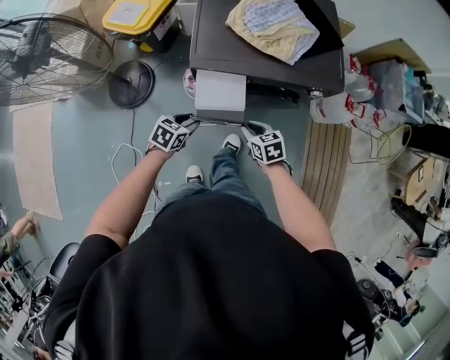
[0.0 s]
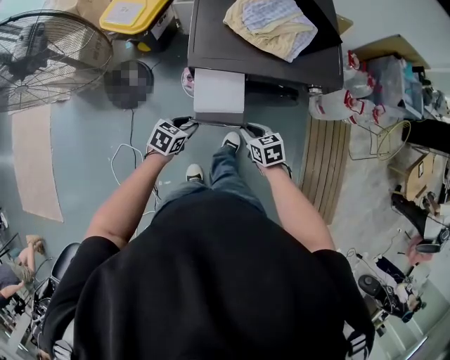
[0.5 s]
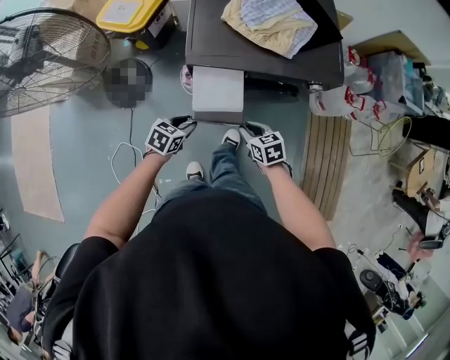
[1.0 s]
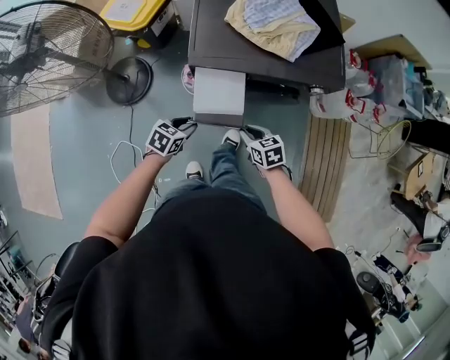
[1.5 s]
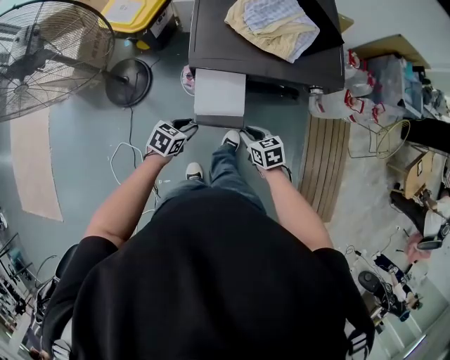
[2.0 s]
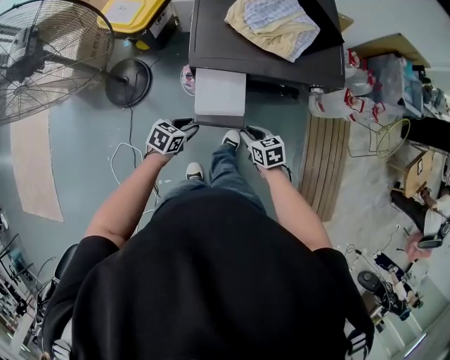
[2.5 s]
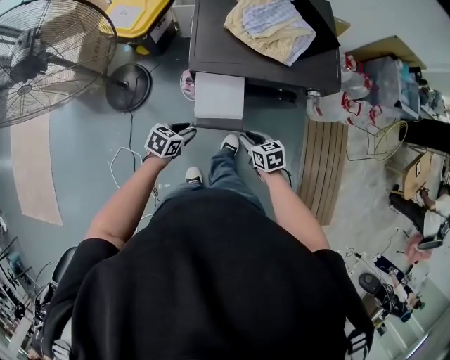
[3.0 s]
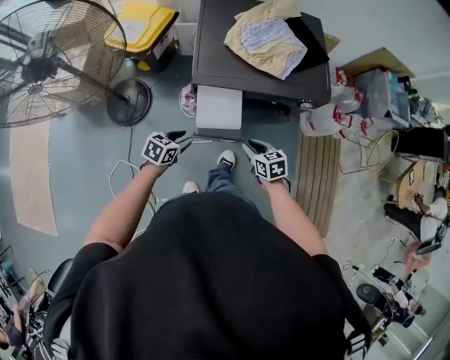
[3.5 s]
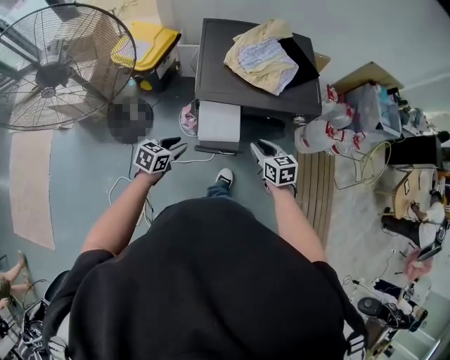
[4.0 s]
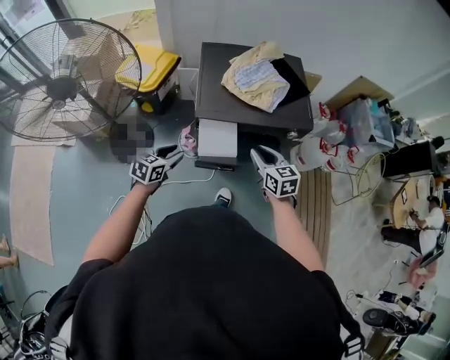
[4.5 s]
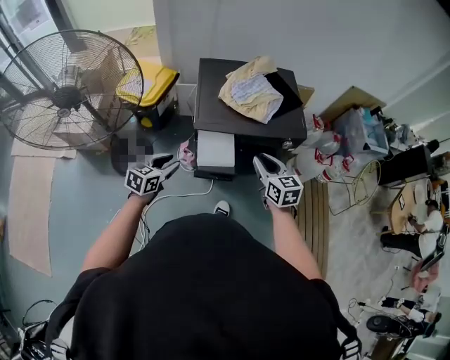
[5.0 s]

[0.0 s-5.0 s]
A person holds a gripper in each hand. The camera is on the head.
0.0 to 2.5 s: The grippers stay close to where they were, moving slightly.
2.5 to 5.0 s: Both grippers move upward, approximately 25 cm. The right gripper turns by roughly 30 degrees. Meanwhile the left gripper rotates roughly 20 degrees.

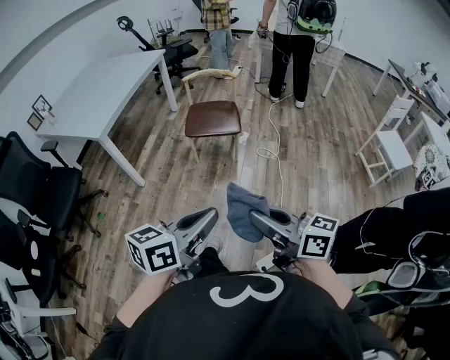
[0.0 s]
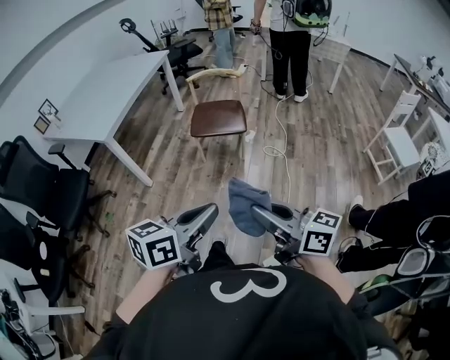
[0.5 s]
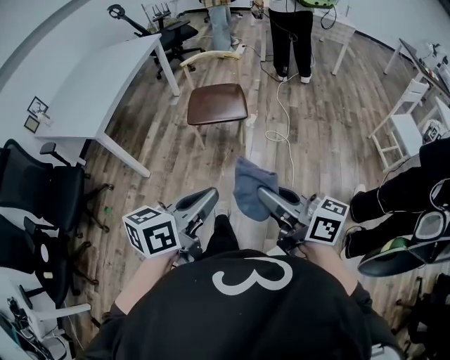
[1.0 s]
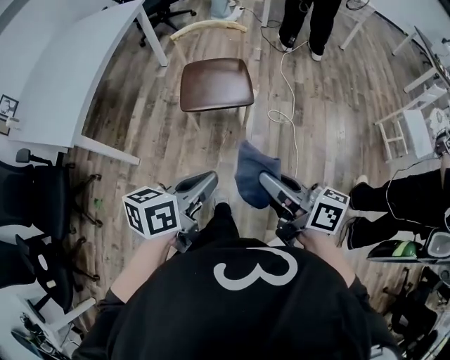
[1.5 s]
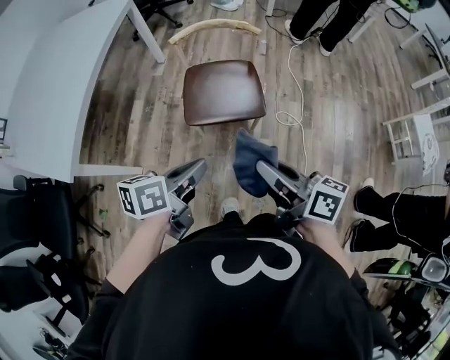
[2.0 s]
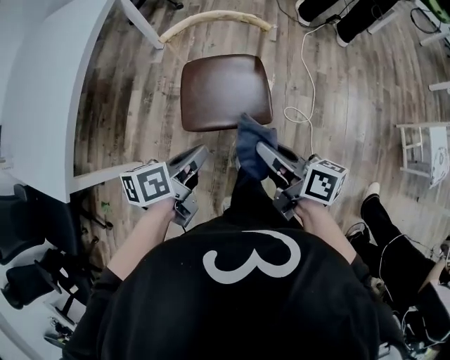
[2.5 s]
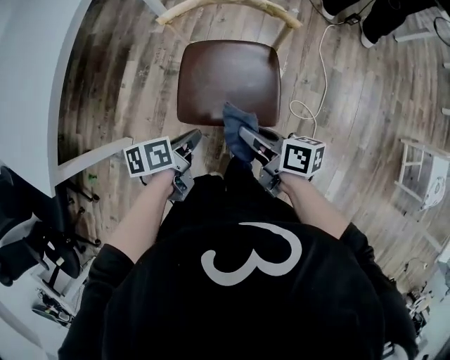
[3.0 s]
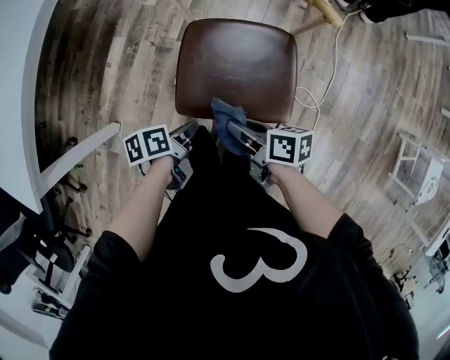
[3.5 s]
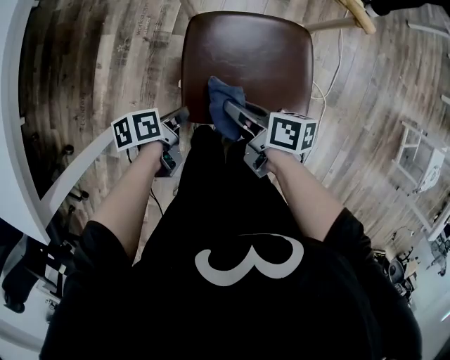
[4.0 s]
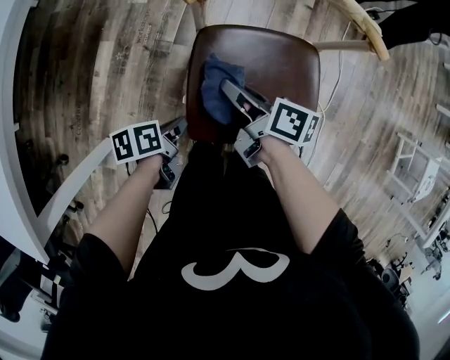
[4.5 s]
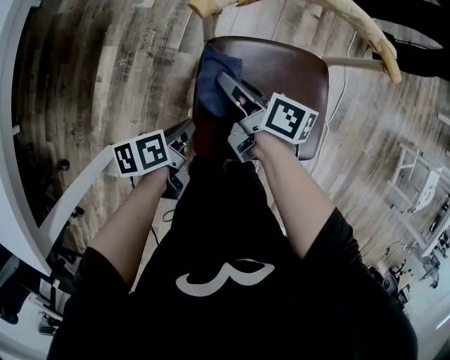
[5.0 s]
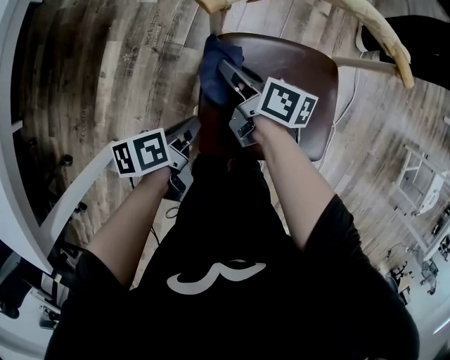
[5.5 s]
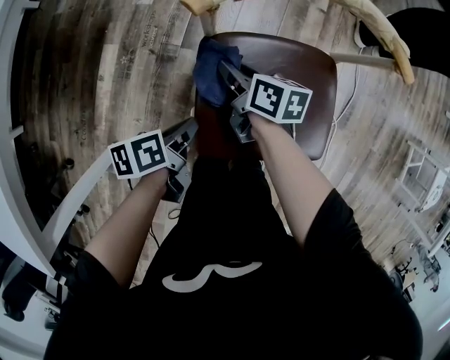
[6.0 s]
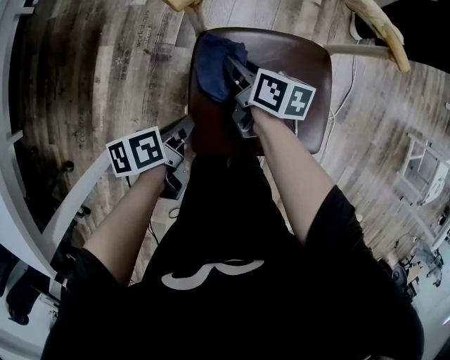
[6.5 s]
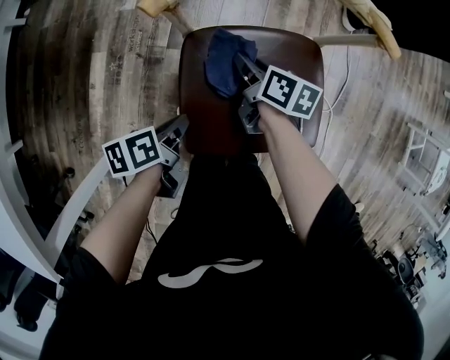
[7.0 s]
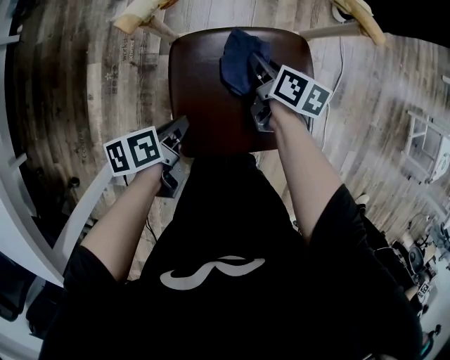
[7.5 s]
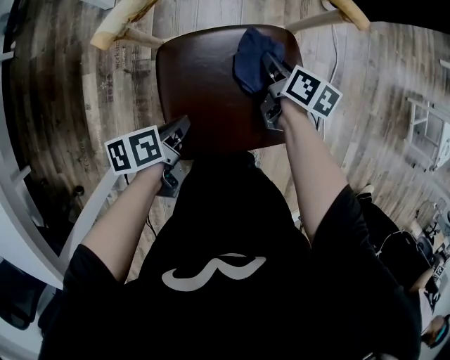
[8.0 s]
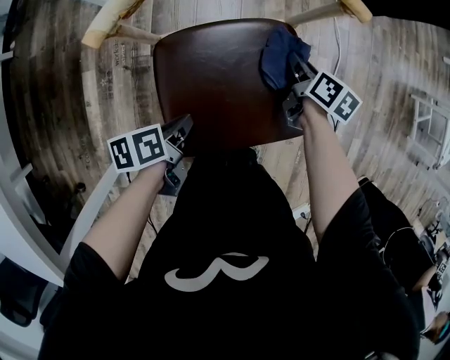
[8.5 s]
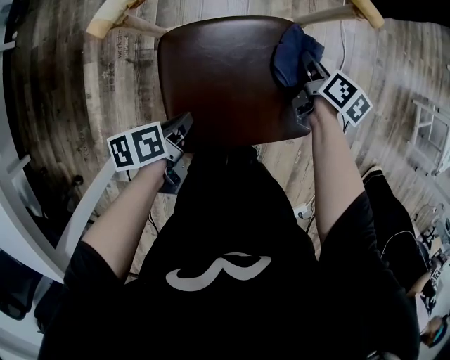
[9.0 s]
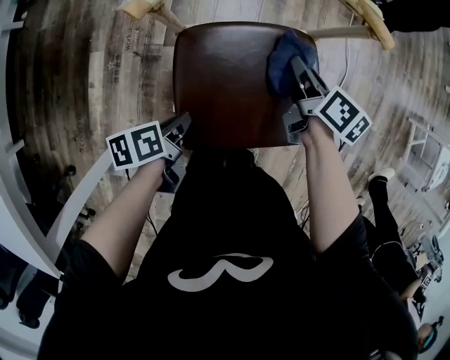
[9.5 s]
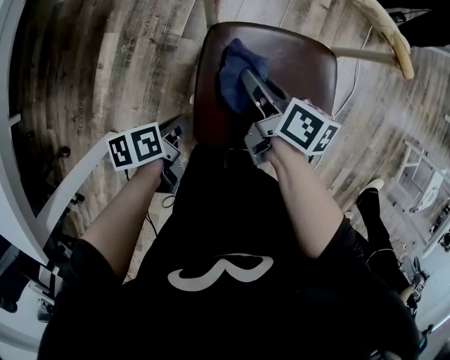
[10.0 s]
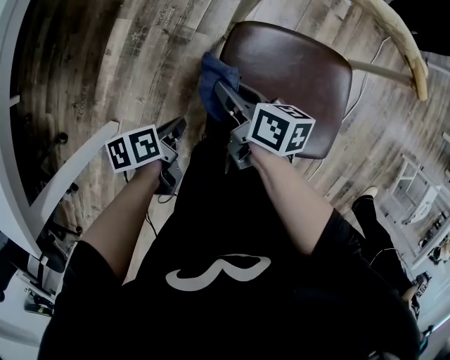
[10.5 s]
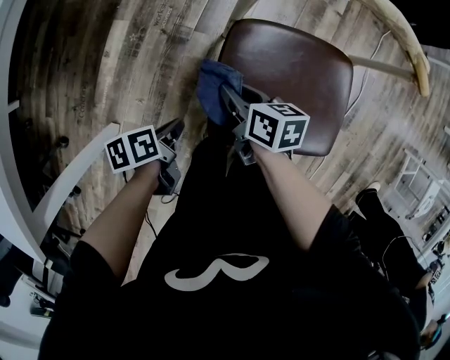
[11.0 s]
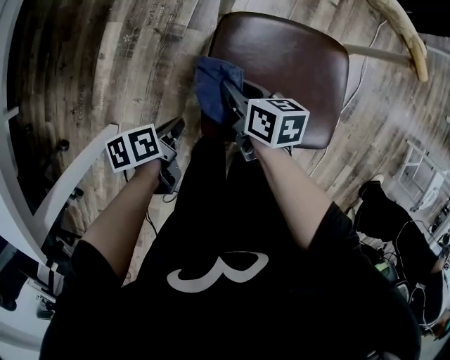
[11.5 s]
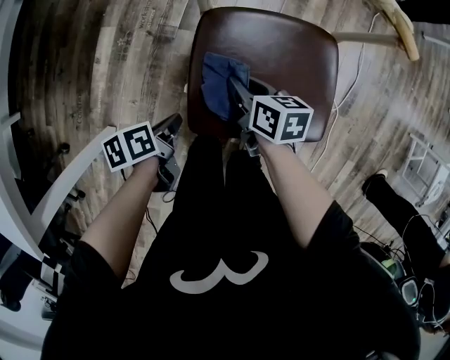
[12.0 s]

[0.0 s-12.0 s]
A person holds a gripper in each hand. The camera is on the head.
0.0 to 2.0 s: The right gripper shifts by approximately 50 cm, and swivels some 20 degrees.
2.0 to 4.0 s: The right gripper shifts about 35 cm downward, and swivels about 30 degrees.
4.0 to 6.0 s: The right gripper shifts by some 20 cm.
6.0 to 8.0 s: The right gripper moves some 20 cm, and turns by some 30 degrees.
8.0 to 10.0 s: The right gripper changes place by about 20 cm, and turns by roughly 20 degrees.
10.0 to 12.0 s: The right gripper heads downward, covering roughly 10 cm, and turns by some 20 degrees.

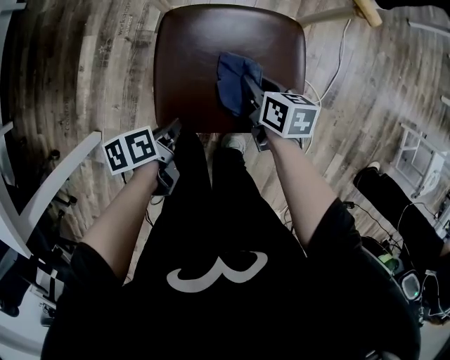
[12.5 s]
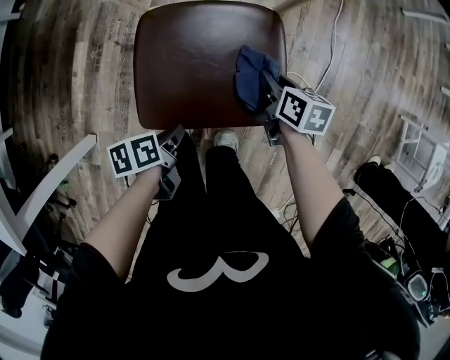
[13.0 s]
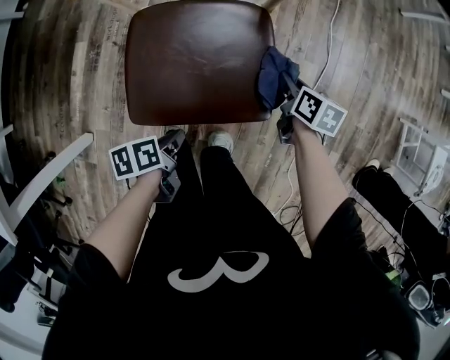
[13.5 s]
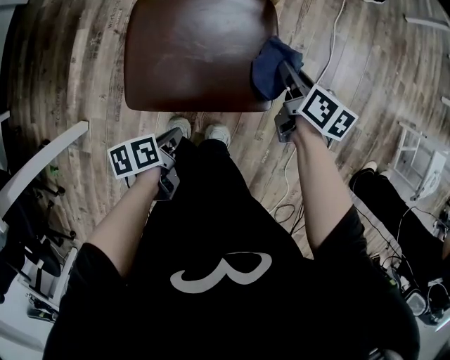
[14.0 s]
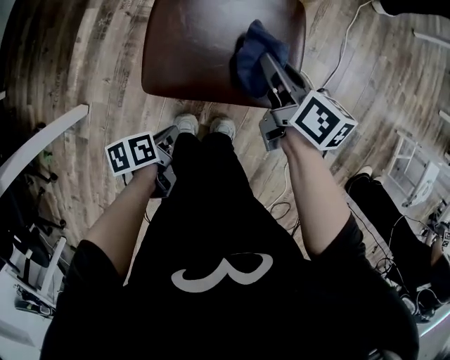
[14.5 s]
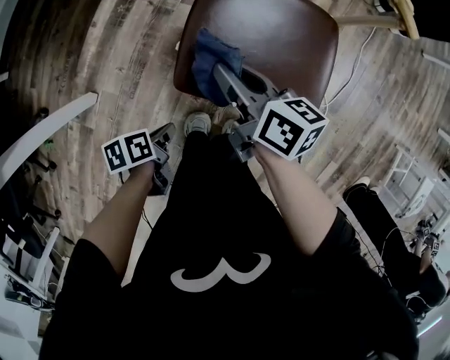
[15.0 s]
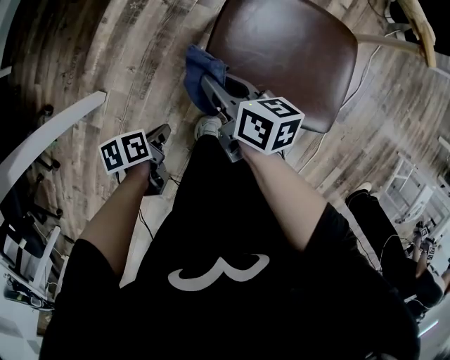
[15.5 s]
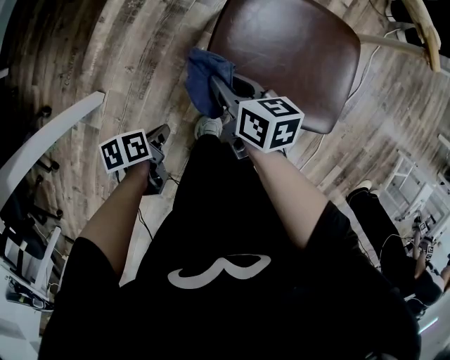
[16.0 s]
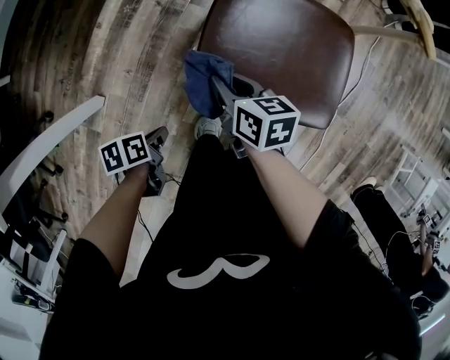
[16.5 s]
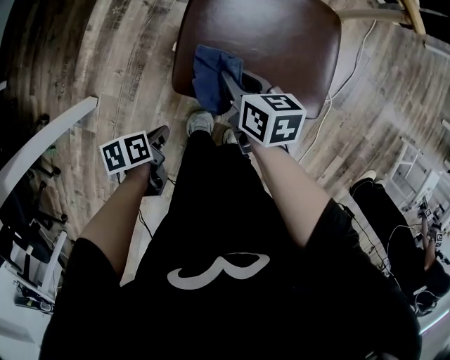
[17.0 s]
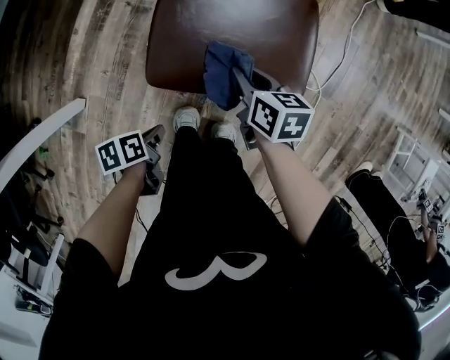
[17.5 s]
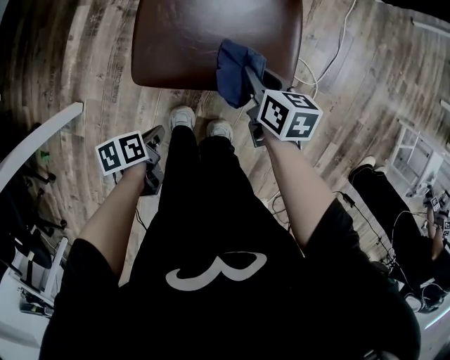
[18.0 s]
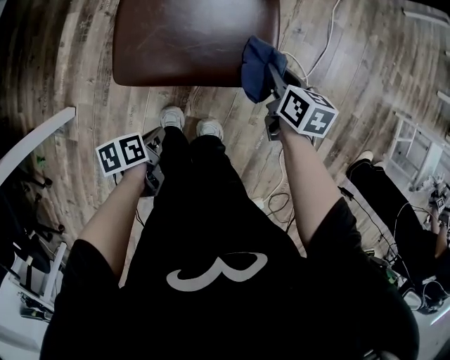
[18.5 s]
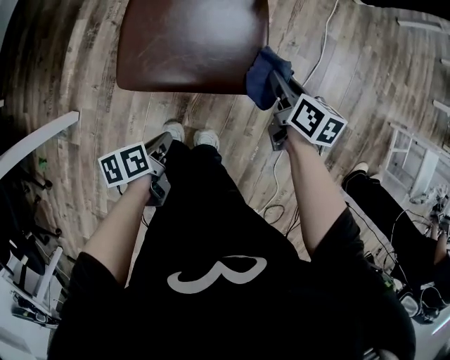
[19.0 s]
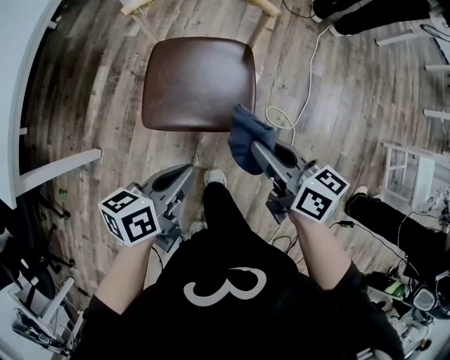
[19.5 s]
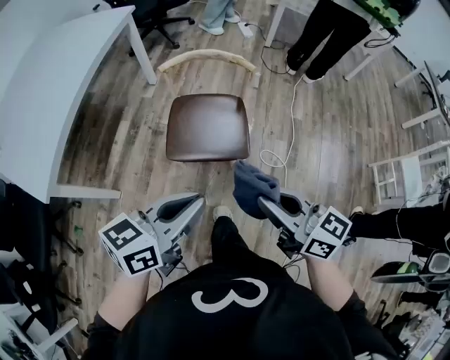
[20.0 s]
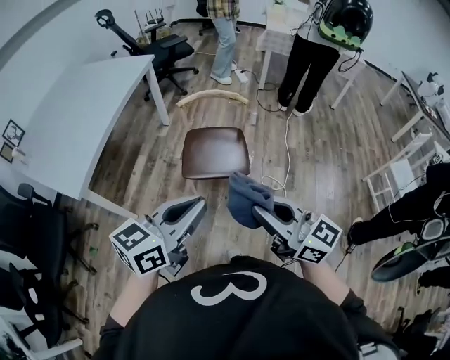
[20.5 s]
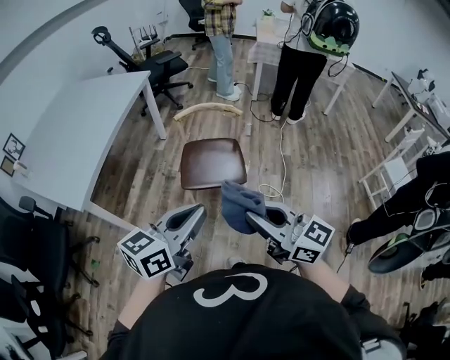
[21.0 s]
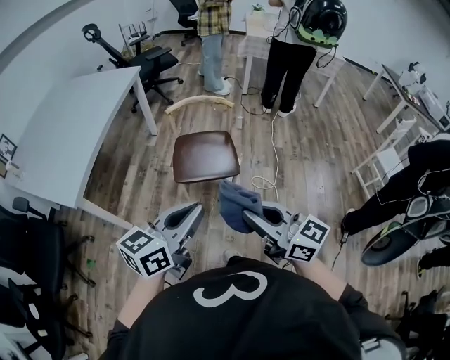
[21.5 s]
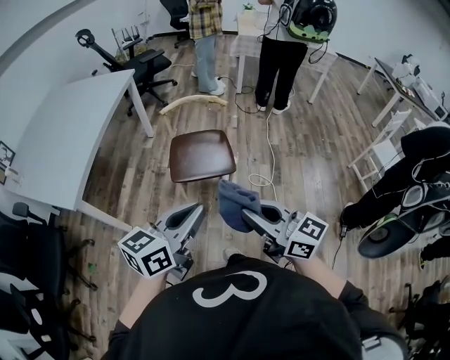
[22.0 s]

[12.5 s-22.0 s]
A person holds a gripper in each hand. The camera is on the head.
12.5 to 14.5 s: The right gripper heads upward, covering approximately 10 cm, and changes its angle by roughly 20 degrees.
14.5 to 16.5 s: The right gripper moves approximately 25 cm, and changes its angle by roughly 20 degrees.
16.5 to 18.0 s: The right gripper moves some 20 cm.
18.0 to 20.0 s: The right gripper goes some 40 cm upward, and tilts its fingers approximately 40 degrees upward.
20.0 to 22.0 s: The right gripper shifts by some 20 cm.
